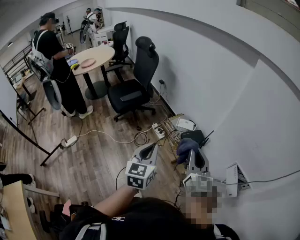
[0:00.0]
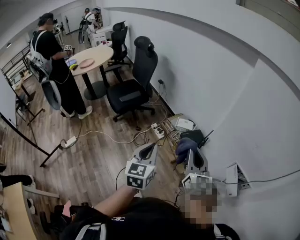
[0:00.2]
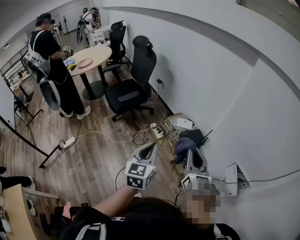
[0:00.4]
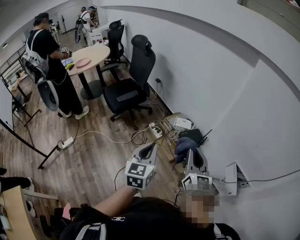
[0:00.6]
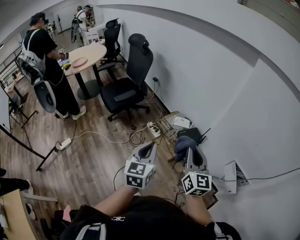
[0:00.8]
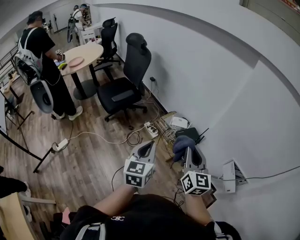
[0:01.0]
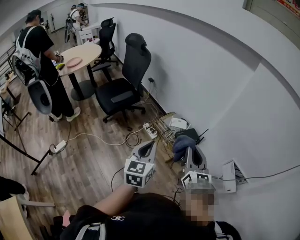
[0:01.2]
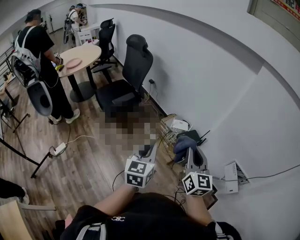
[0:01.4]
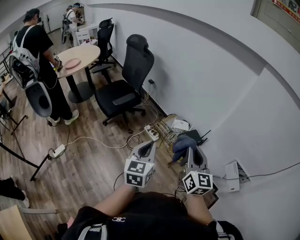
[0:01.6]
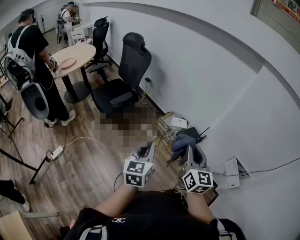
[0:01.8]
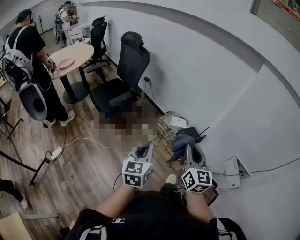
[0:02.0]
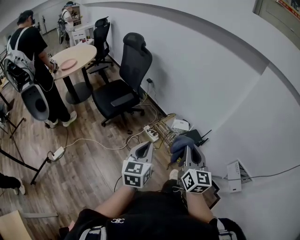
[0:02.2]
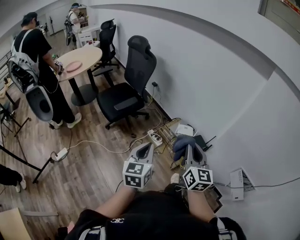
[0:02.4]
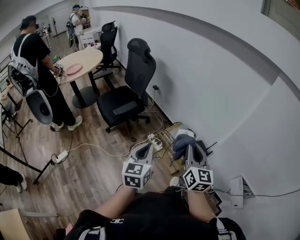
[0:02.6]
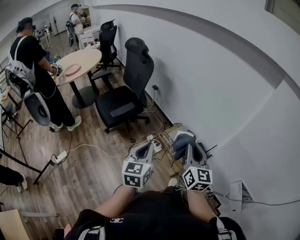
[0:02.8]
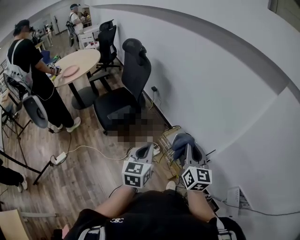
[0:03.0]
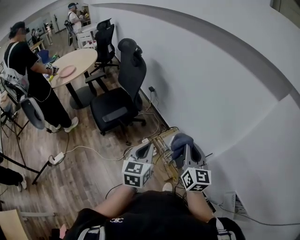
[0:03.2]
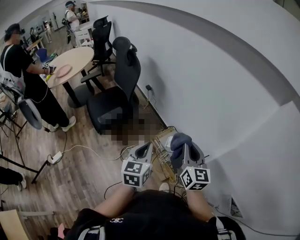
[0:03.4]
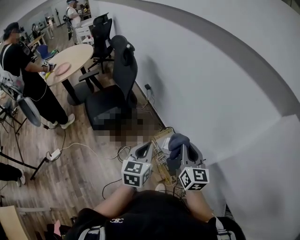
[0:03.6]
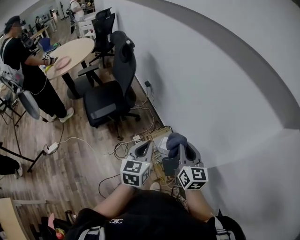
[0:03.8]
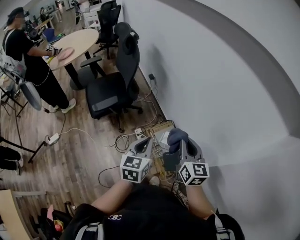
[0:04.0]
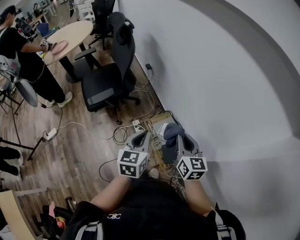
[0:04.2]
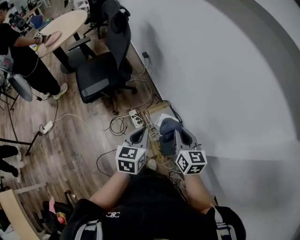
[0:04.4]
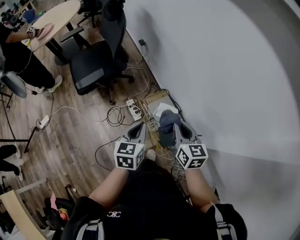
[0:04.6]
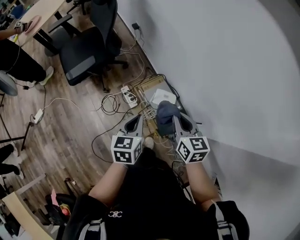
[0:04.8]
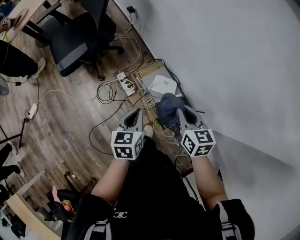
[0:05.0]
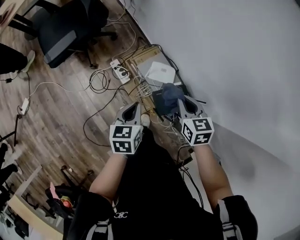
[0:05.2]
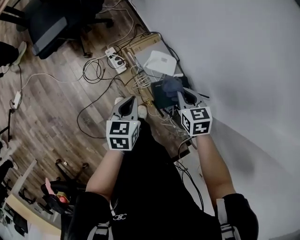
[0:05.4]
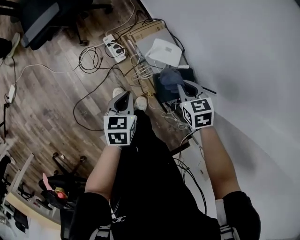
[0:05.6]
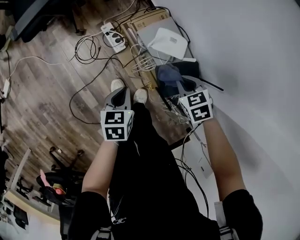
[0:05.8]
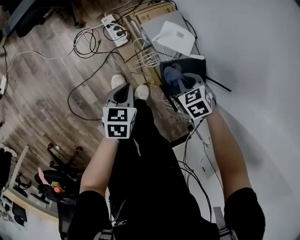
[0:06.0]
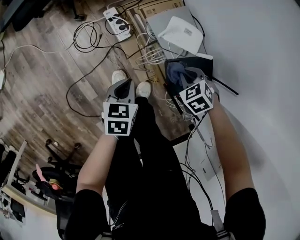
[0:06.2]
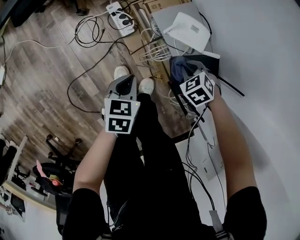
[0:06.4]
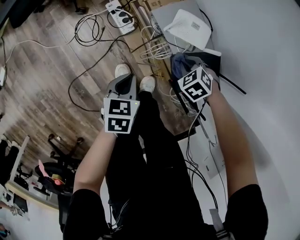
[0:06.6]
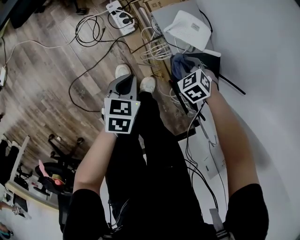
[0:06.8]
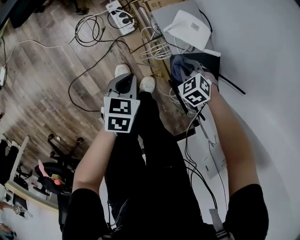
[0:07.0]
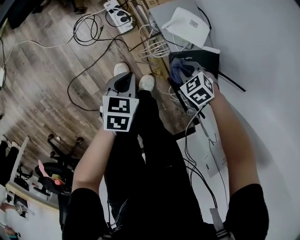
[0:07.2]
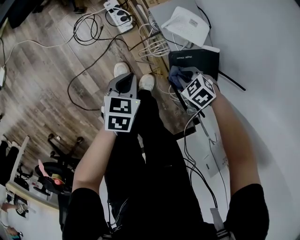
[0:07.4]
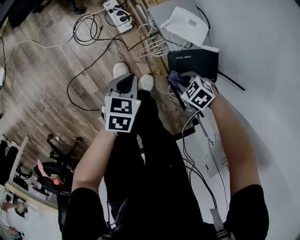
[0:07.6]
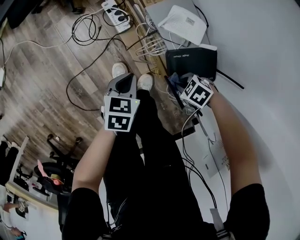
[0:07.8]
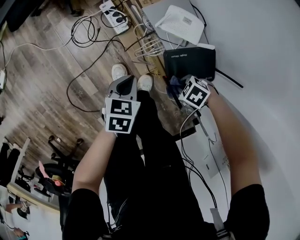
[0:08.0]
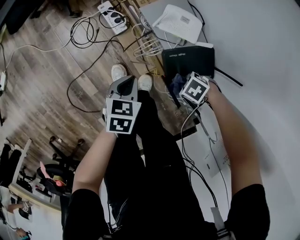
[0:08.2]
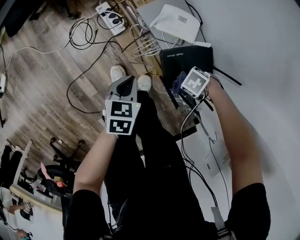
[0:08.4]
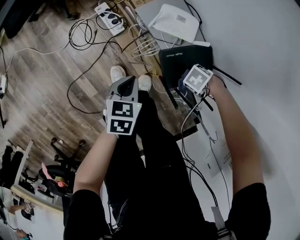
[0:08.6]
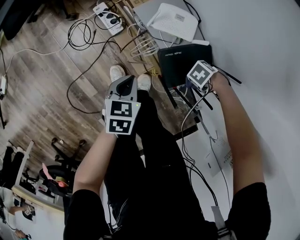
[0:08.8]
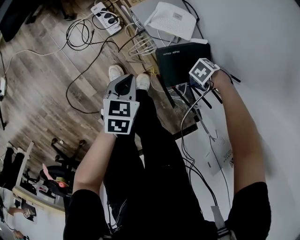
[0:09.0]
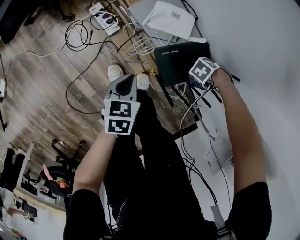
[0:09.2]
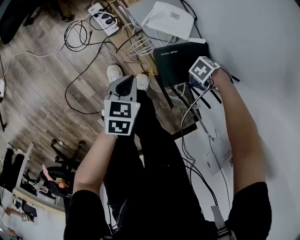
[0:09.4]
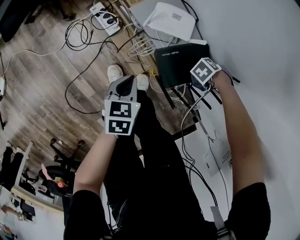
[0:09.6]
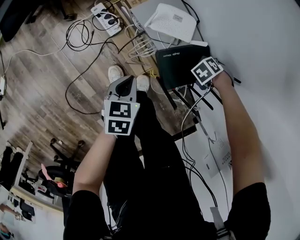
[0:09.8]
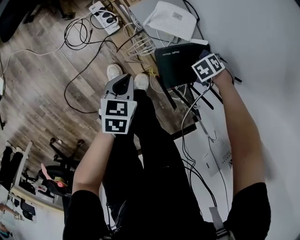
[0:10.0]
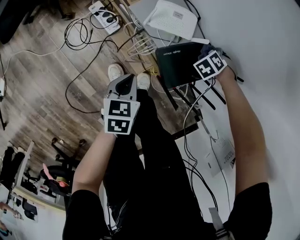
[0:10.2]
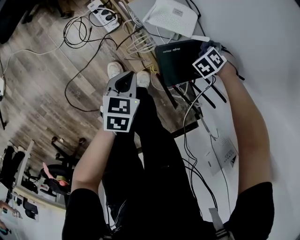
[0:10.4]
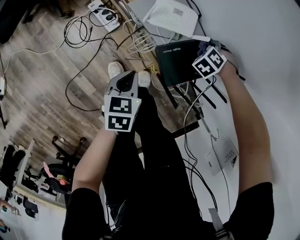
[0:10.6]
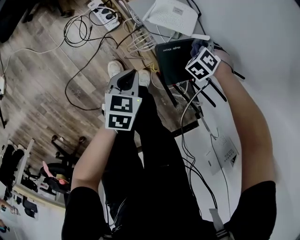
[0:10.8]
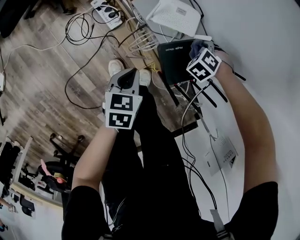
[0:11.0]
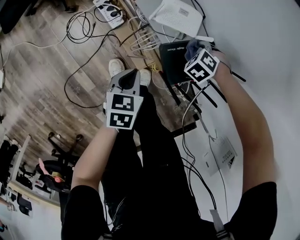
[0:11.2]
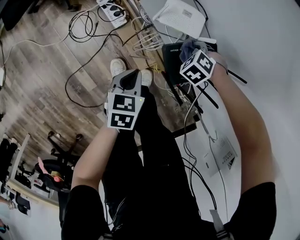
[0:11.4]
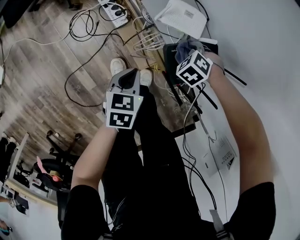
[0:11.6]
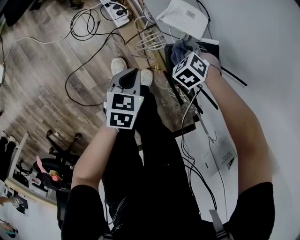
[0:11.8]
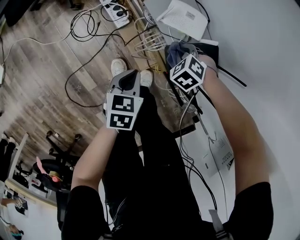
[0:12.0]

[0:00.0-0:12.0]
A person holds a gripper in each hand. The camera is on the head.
0:00.0 to 0:01.6: The right gripper shifts roughly 10 cm to the left. Meanwhile the left gripper is displaced to the left and forward by some 15 cm.
0:01.6 to 0:03.0: Both grippers move forward, approximately 25 cm.
0:03.0 to 0:04.4: The left gripper moves forward, to the right and downward, roughly 25 cm. Meanwhile the right gripper is displaced forward, downward and to the right by some 25 cm, and turns by about 30 degrees.
0:04.4 to 0:06.0: Both grippers move downward, about 50 cm. The left gripper turns by about 30 degrees. Meanwhile the right gripper angles its fingers downward, by roughly 50 degrees.
0:06.0 to 0:07.6: The right gripper travels downward by roughly 10 cm, and swivels roughly 30 degrees.
0:07.6 to 0:09.0: The right gripper changes place by approximately 20 cm, and turns by approximately 40 degrees.
0:09.0 to 0:10.4: The right gripper ends up approximately 15 cm from where it was, and swivels approximately 40 degrees.
0:10.4 to 0:12.0: The right gripper ends up approximately 20 cm from where it was, and swivels some 20 degrees.

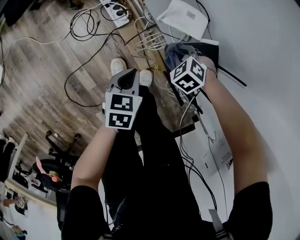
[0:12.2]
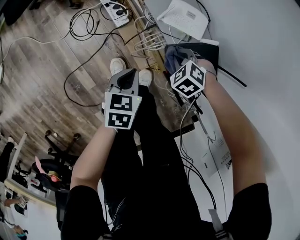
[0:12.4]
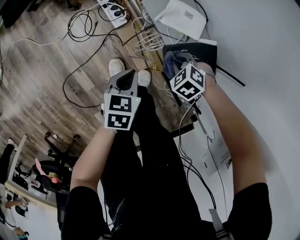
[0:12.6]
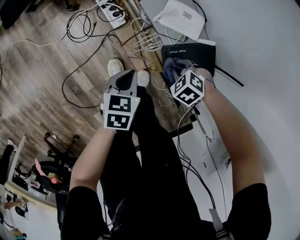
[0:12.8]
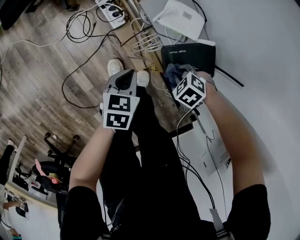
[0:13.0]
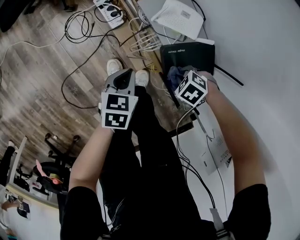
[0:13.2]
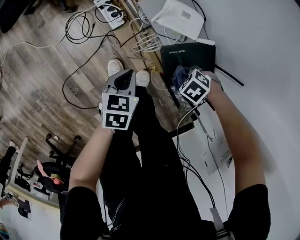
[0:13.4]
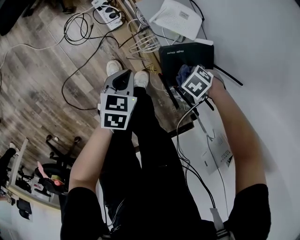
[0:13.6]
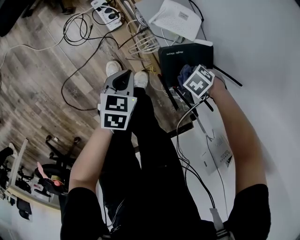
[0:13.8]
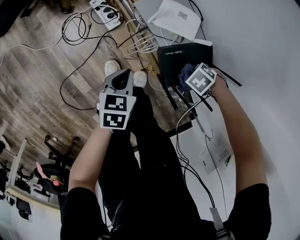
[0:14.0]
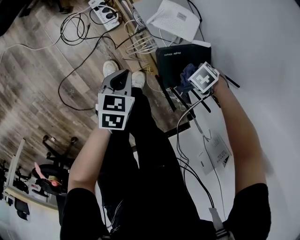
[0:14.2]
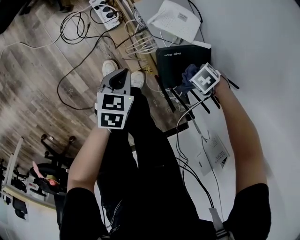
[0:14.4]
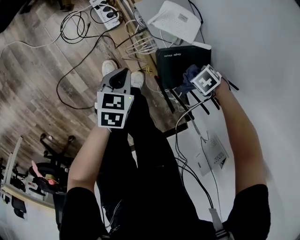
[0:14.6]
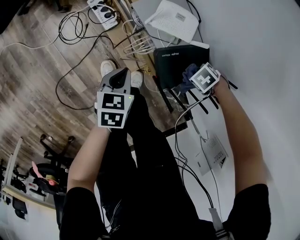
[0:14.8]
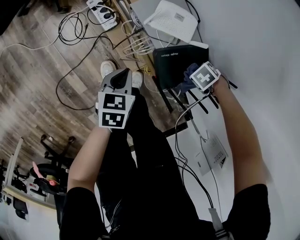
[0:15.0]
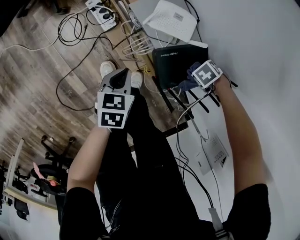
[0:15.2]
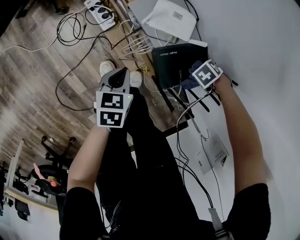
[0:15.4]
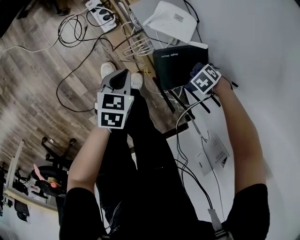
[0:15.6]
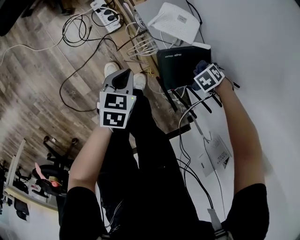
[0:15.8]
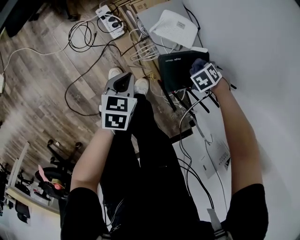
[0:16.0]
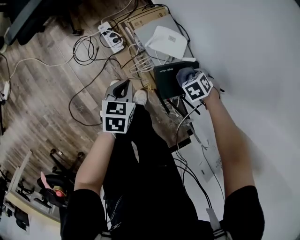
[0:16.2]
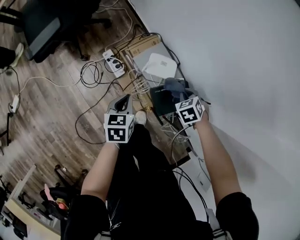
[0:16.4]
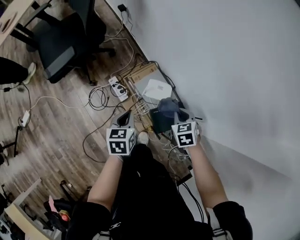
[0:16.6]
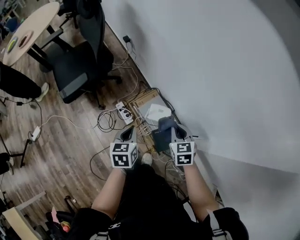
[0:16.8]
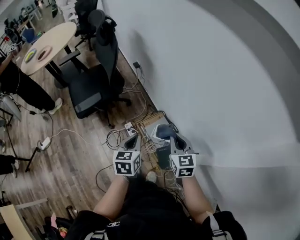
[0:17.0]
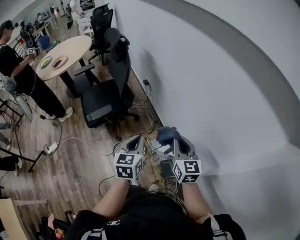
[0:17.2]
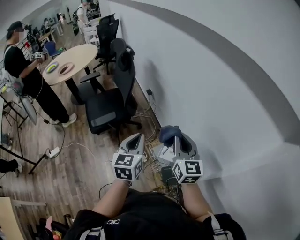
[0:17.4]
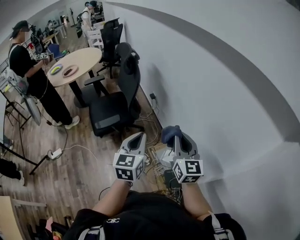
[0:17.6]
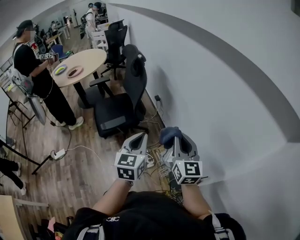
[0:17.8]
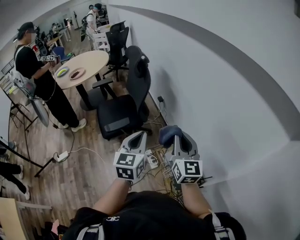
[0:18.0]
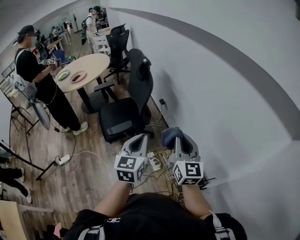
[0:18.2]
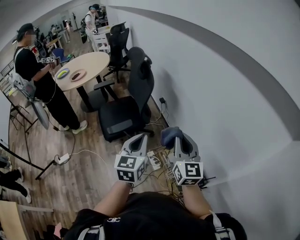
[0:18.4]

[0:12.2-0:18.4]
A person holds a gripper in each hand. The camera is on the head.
0:12.2 to 0:13.8: The right gripper shifts by about 15 cm, and turns by about 30 degrees.
0:13.8 to 0:15.4: The right gripper is displaced forward and to the left by about 10 cm.
0:15.4 to 0:16.8: Both grippers move upward, about 40 cm. The left gripper rotates roughly 20 degrees. Meanwhile the right gripper rotates roughly 80 degrees.
0:16.8 to 0:18.4: The left gripper is displaced upward by approximately 30 cm, and turns by approximately 30 degrees. Meanwhile the right gripper moves upward and to the left, roughly 40 cm, and tilts its fingers about 50 degrees upward.

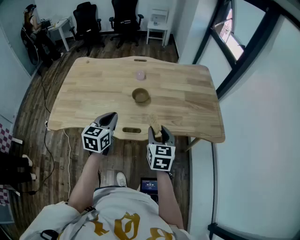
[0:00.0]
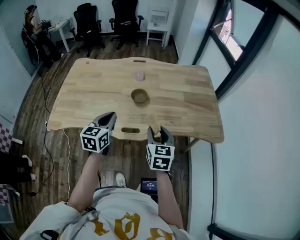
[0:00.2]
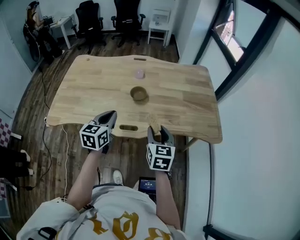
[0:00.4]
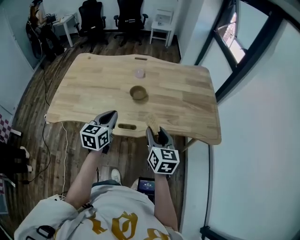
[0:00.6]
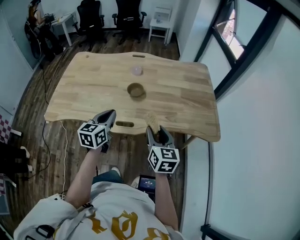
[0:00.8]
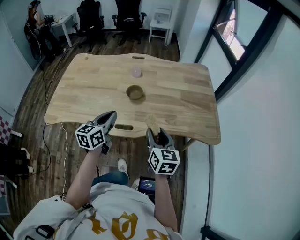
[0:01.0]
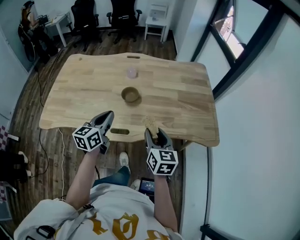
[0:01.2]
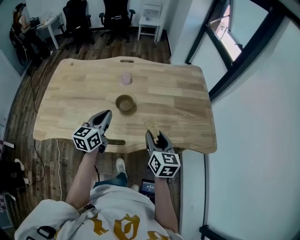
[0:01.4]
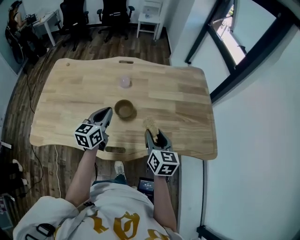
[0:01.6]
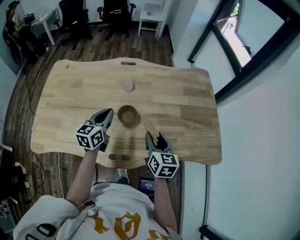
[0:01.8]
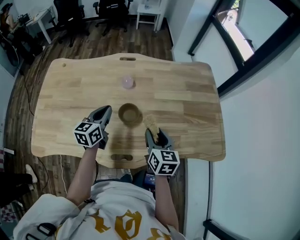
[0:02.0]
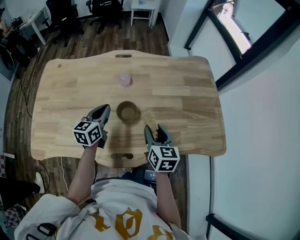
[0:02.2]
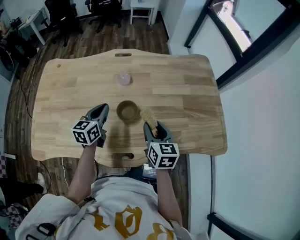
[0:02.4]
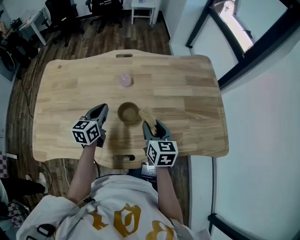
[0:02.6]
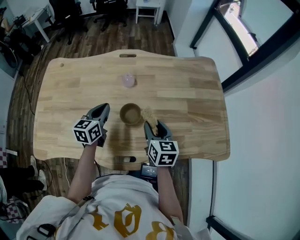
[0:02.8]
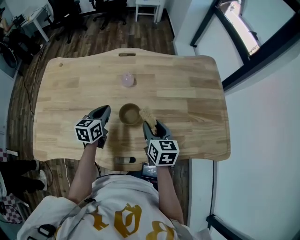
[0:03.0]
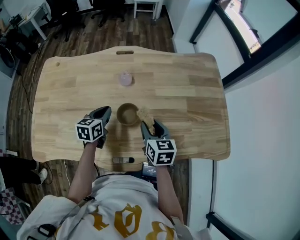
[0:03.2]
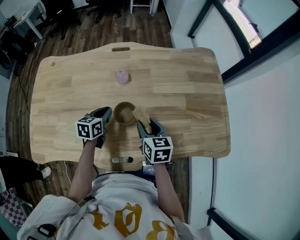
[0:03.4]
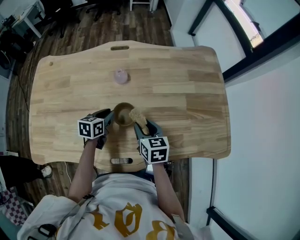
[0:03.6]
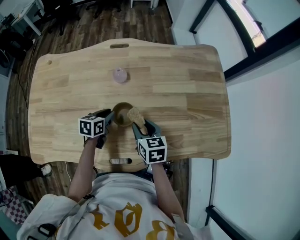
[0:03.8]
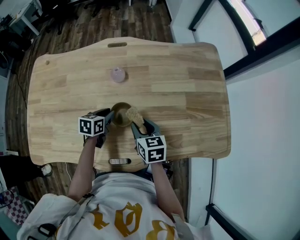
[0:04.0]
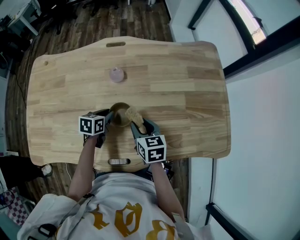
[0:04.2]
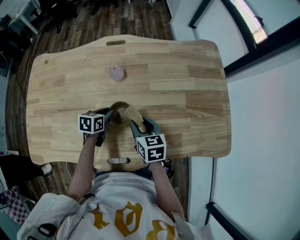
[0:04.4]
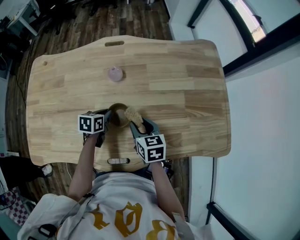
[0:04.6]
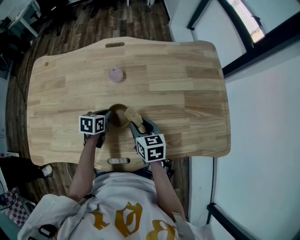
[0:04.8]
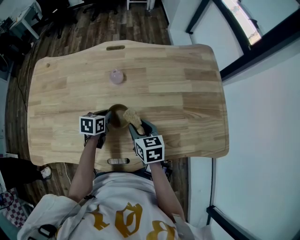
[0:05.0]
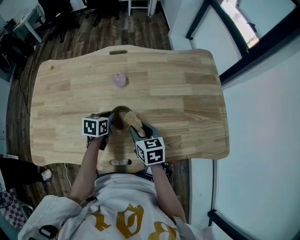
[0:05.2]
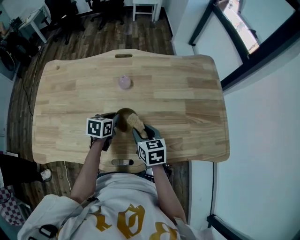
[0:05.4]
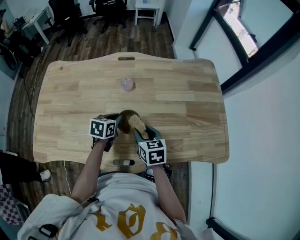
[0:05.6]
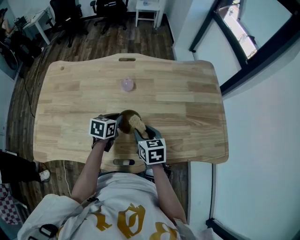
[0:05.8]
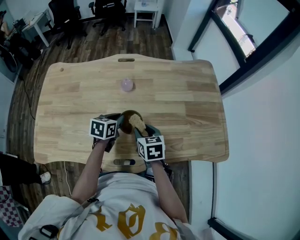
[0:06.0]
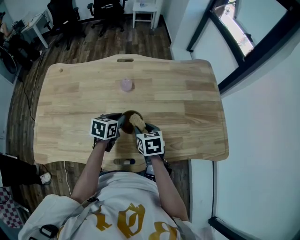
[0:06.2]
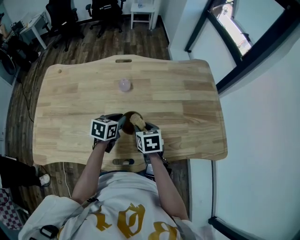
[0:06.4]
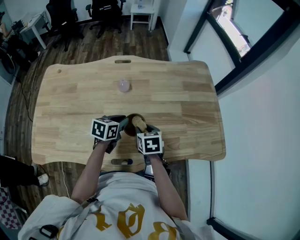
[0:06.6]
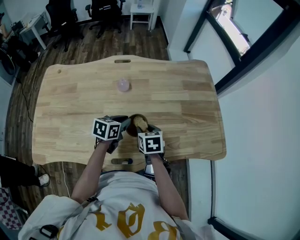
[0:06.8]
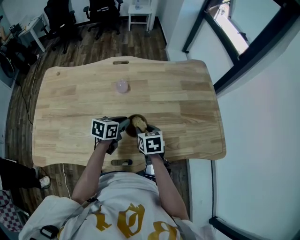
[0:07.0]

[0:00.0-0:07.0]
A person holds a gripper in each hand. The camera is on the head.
0:00.0 to 0:01.4: The left gripper goes roughly 10 cm forward, while the right gripper moves forward and to the right, approximately 10 cm.
0:01.4 to 0:02.8: The left gripper heads forward, downward and to the left, covering approximately 20 cm; the right gripper goes about 20 cm forward, to the left and downward.
0:02.8 to 0:04.2: The right gripper is displaced downward by some 5 cm. Meanwhile the left gripper heads downward, covering about 15 cm, and swivels some 30 degrees.
0:04.2 to 0:05.6: The left gripper travels upward by about 5 cm; the right gripper ends up about 5 cm from where it was.
0:05.6 to 0:07.0: The left gripper is displaced to the right by approximately 5 cm.
